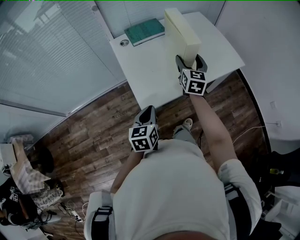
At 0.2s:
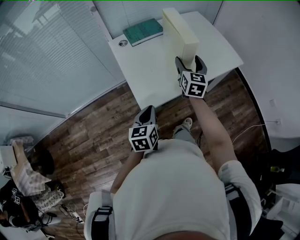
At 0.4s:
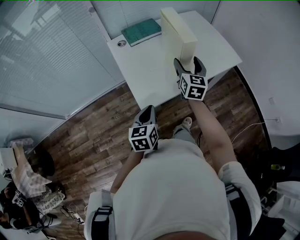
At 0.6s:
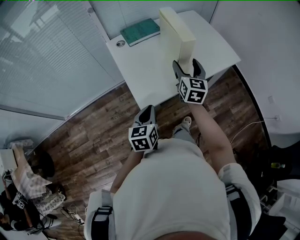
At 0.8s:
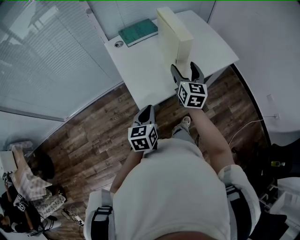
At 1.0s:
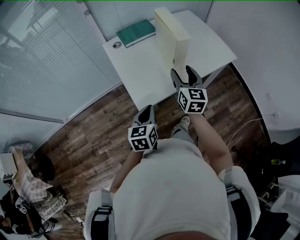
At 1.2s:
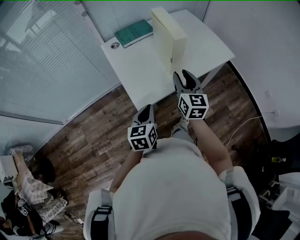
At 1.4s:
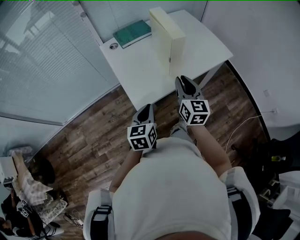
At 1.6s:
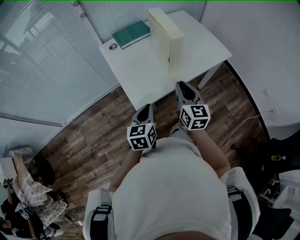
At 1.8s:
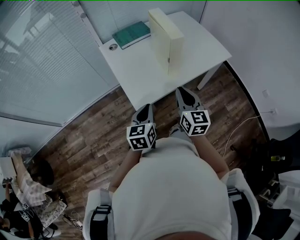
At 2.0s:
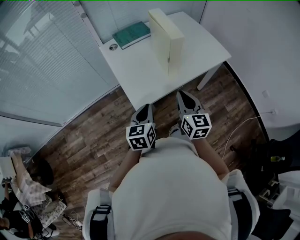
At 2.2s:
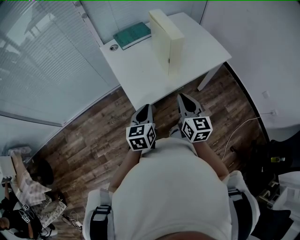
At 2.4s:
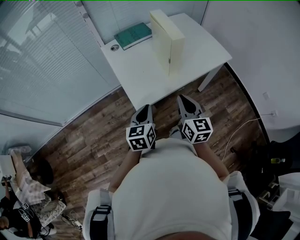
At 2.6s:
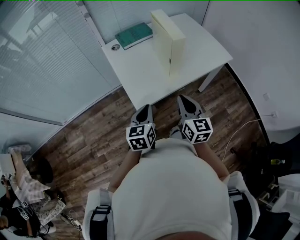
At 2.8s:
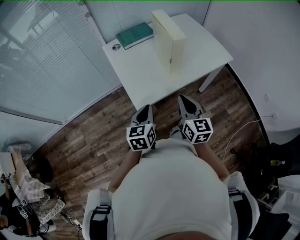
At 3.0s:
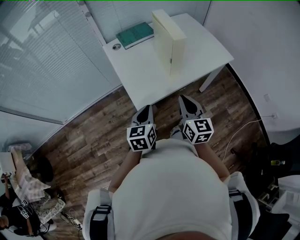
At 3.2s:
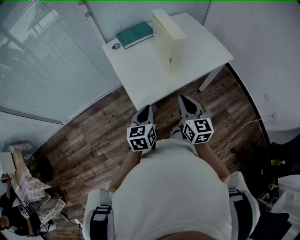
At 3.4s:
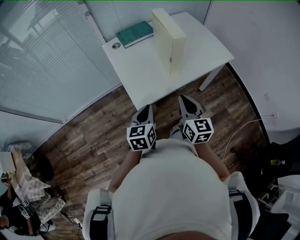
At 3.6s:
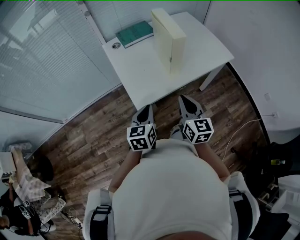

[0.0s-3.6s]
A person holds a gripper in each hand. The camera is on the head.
0.0s to 1.8s: The right gripper shifts approximately 20 cm backward, and closes.
1.8s to 3.6s: The grippers make only small movements.

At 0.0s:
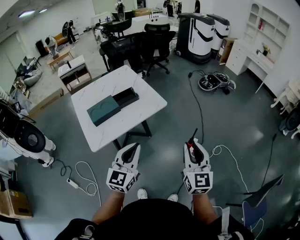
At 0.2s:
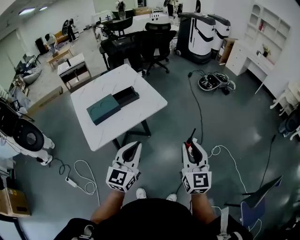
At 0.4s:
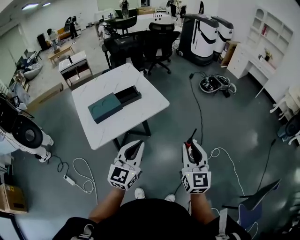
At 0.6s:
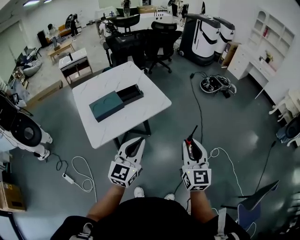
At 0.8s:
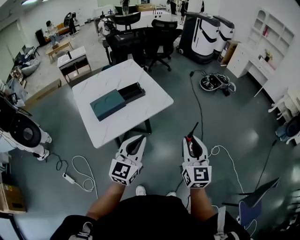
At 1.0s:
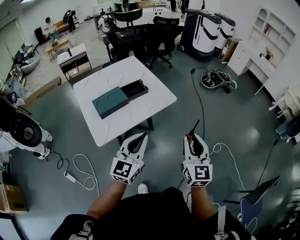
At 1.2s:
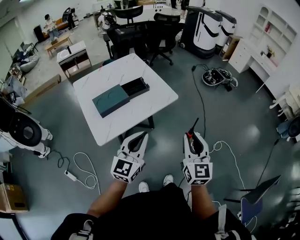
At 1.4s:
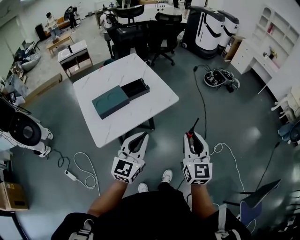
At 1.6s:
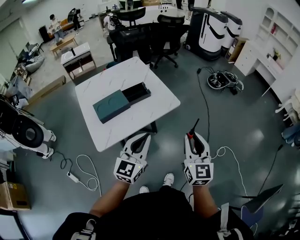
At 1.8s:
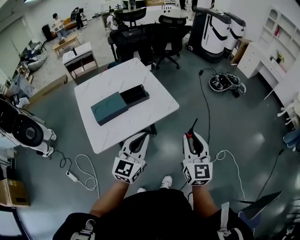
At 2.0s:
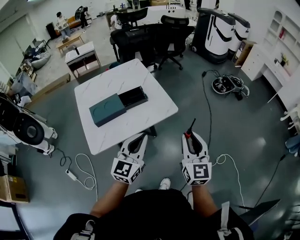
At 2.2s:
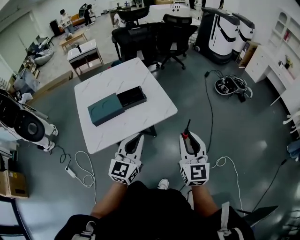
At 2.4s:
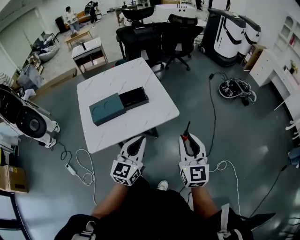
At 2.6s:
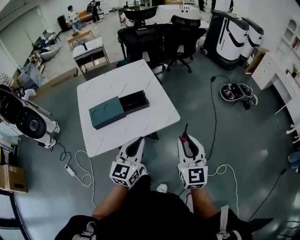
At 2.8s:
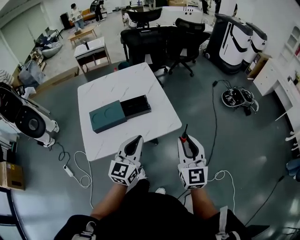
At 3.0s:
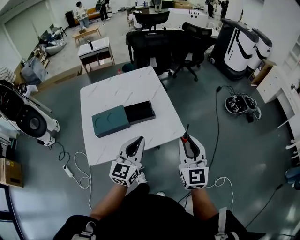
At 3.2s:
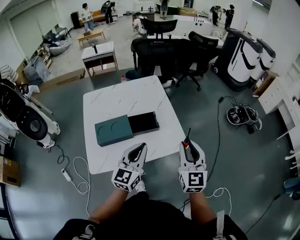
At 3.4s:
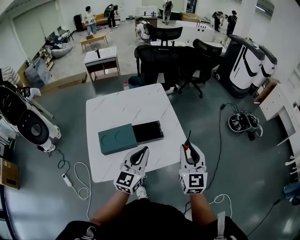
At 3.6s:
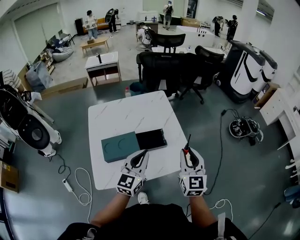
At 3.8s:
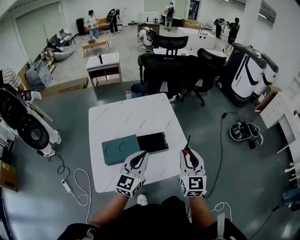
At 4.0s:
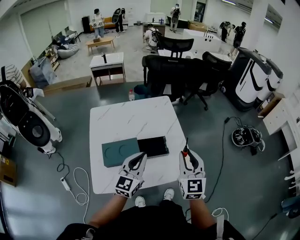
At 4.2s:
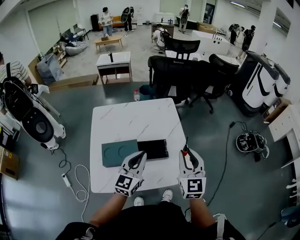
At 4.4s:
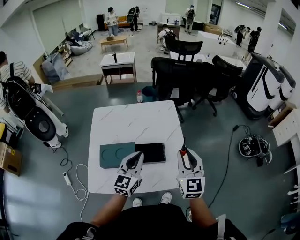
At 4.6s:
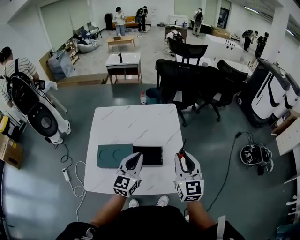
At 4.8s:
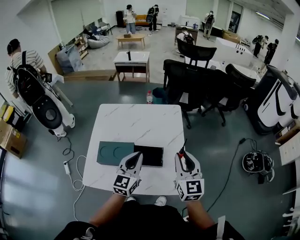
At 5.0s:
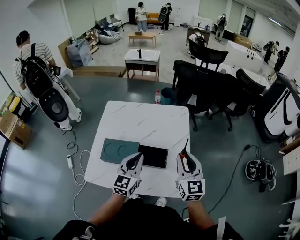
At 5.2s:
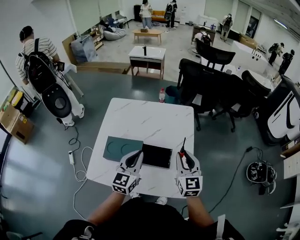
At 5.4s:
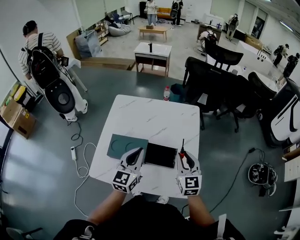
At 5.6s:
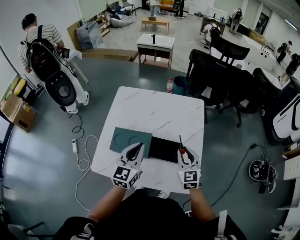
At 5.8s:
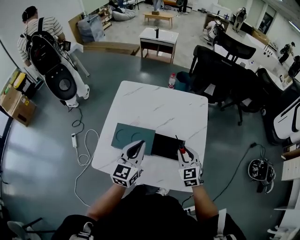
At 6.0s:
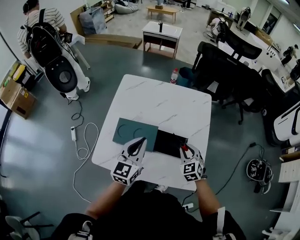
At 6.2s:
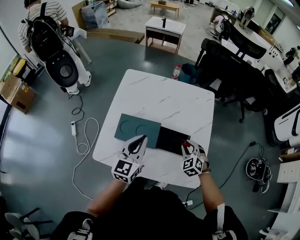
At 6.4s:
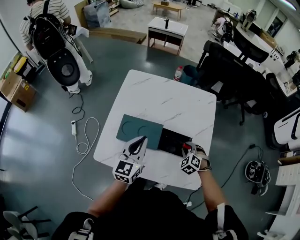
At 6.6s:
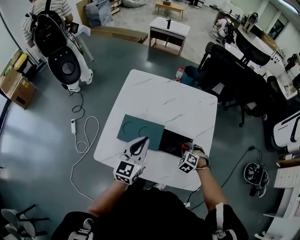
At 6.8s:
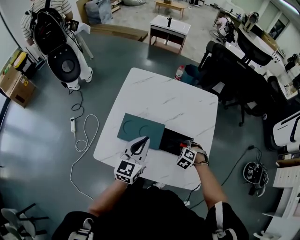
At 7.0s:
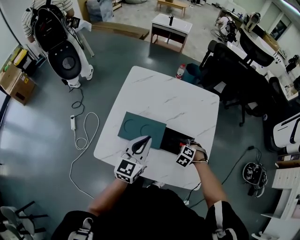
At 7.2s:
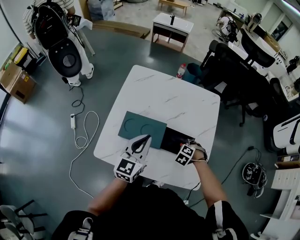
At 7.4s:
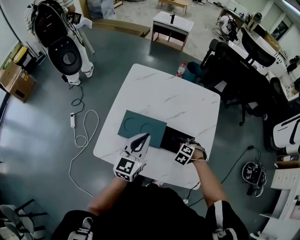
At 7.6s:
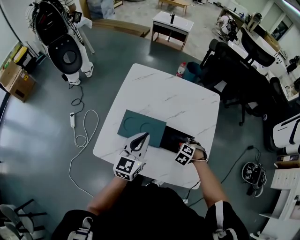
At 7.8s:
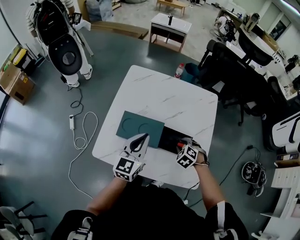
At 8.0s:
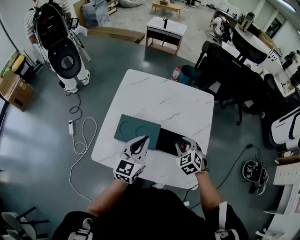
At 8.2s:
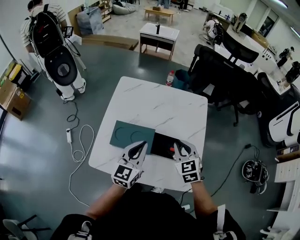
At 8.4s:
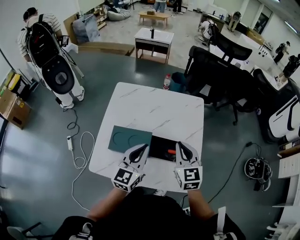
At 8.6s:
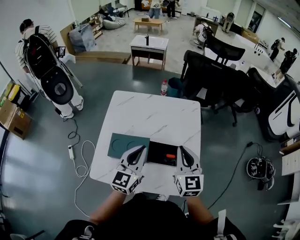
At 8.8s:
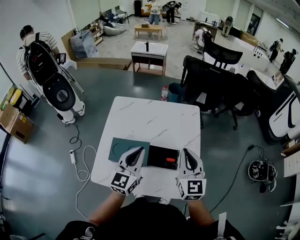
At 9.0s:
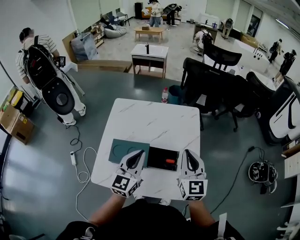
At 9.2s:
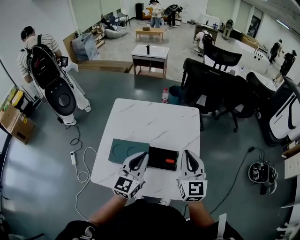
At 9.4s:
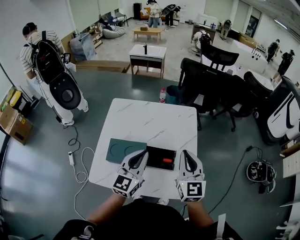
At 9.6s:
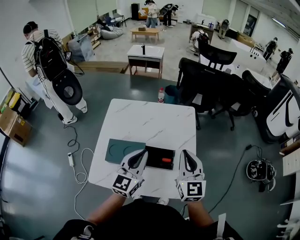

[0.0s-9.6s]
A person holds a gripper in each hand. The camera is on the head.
0.0s to 1.6s: The right gripper travels to the left and forward by approximately 15 cm. The left gripper moves forward and to the left, roughly 10 cm.
1.6s to 3.2s: The two grippers go some 25 cm forward.
3.2s to 4.8s: Both grippers travel together forward, approximately 20 cm. The left gripper swivels roughly 20 degrees. The right gripper turns by some 20 degrees.
4.8s to 6.4s: The left gripper heads to the left, covering approximately 15 cm. Meanwhile the right gripper is displaced downward by approximately 30 cm, and tilts its fingers approximately 50 degrees downward.
6.4s to 8.0s: The right gripper goes about 10 cm upward.
8.0s to 9.6s: The right gripper goes roughly 20 cm upward, points its fingers approximately 50 degrees further upward, and closes, while the left gripper goes approximately 10 cm upward and to the right.

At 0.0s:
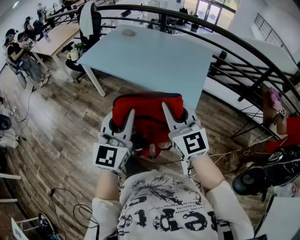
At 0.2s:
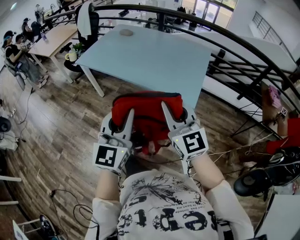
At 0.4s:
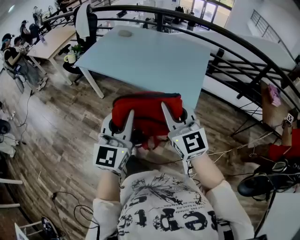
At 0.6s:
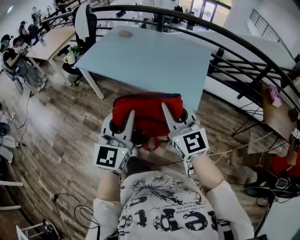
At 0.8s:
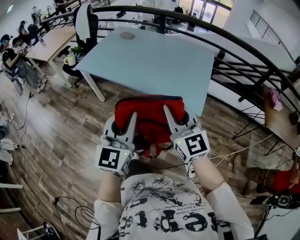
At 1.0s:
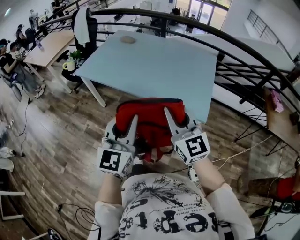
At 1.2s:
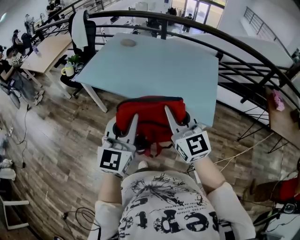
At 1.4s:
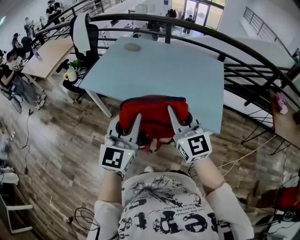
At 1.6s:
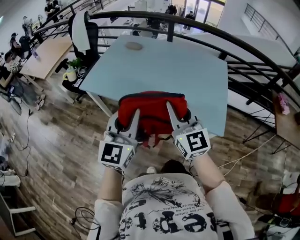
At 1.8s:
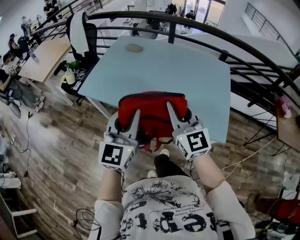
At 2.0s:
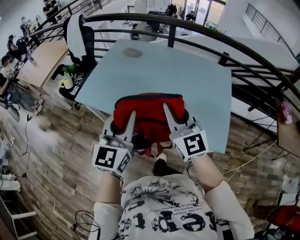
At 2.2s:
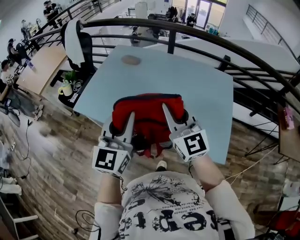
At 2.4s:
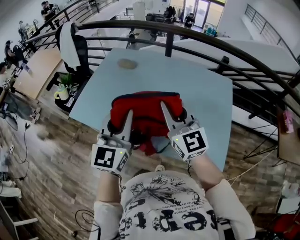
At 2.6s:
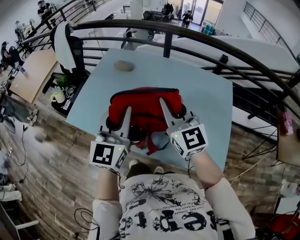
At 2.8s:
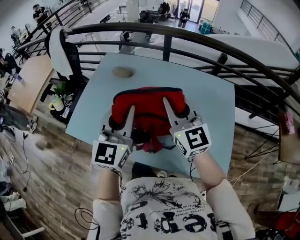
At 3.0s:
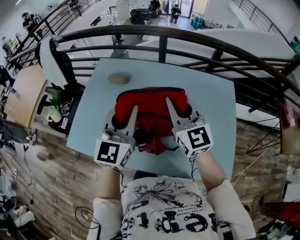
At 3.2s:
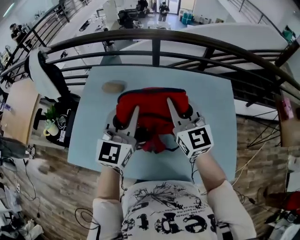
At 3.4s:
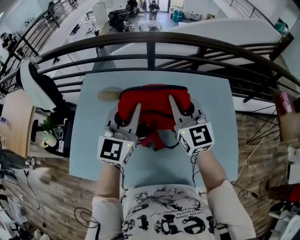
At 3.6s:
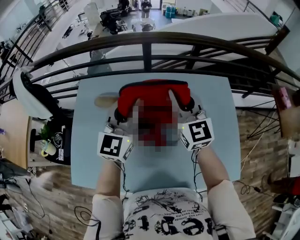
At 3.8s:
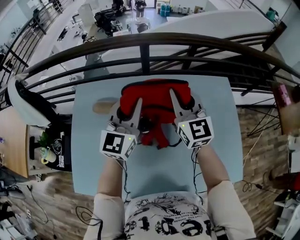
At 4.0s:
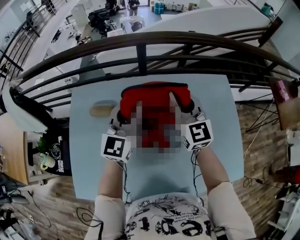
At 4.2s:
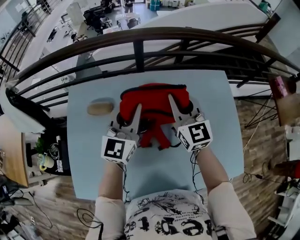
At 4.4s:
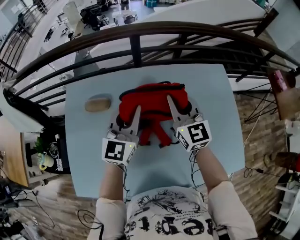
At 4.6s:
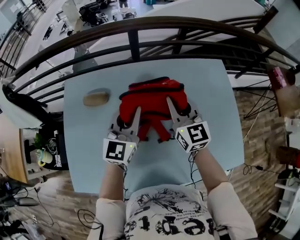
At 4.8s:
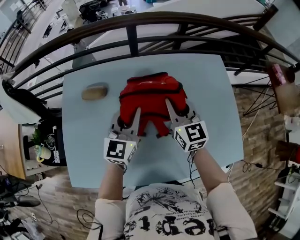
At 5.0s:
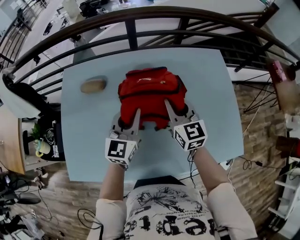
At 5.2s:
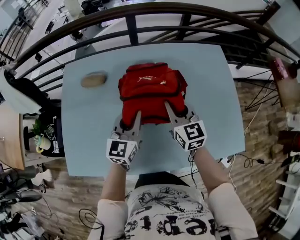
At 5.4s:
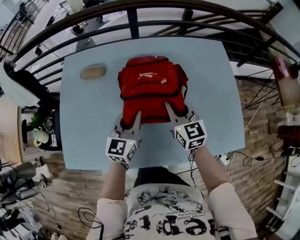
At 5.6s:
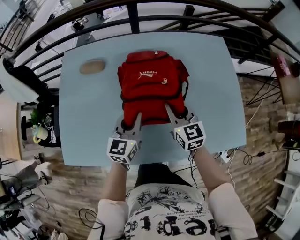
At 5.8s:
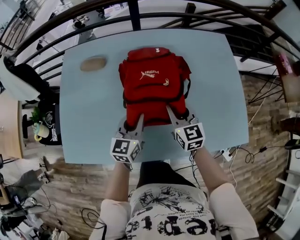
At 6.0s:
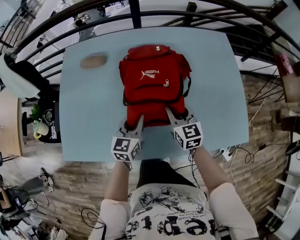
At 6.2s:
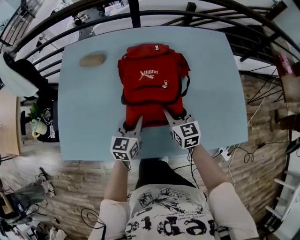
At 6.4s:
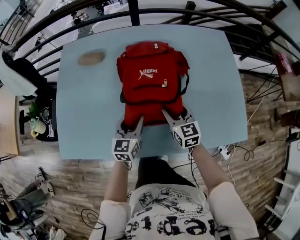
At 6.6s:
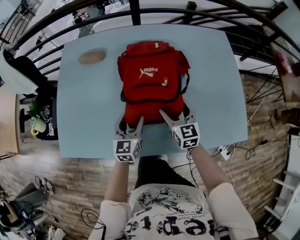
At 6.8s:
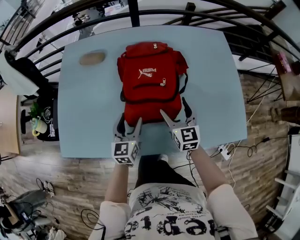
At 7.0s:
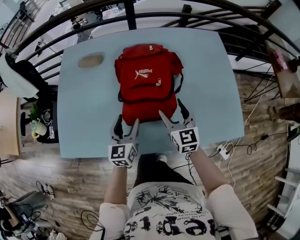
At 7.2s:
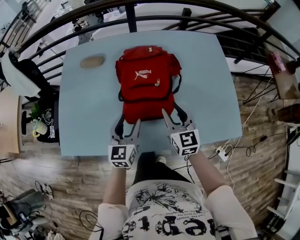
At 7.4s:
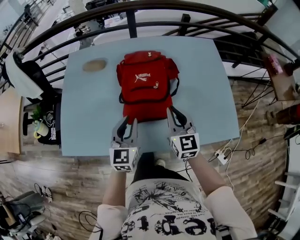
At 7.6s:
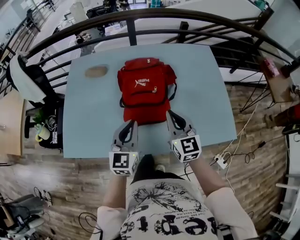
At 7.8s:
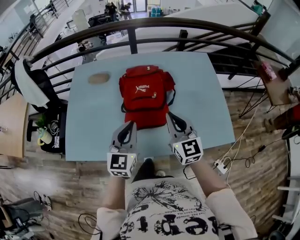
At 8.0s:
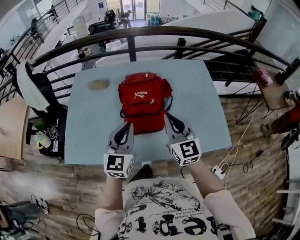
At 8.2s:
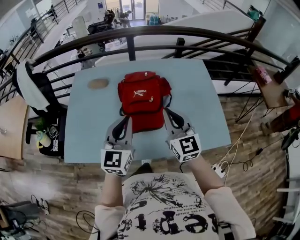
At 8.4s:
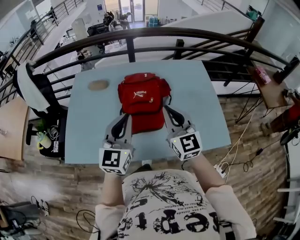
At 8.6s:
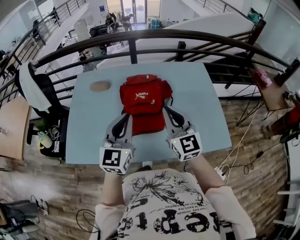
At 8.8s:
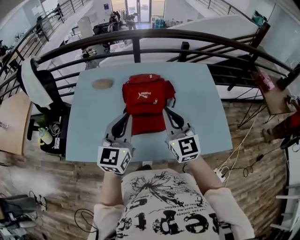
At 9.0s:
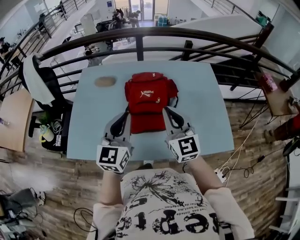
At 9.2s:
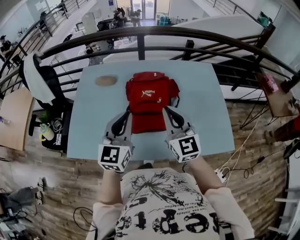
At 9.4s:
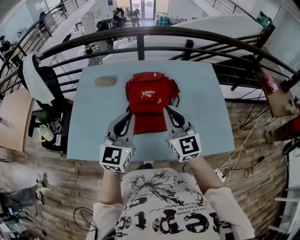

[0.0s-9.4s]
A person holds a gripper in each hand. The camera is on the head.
0.0s to 1.6s: Both grippers move forward and to the left, some 30 cm.
1.6s to 3.2s: Both grippers are carried forward, approximately 50 cm.
3.2s to 4.8s: The two grippers go approximately 15 cm downward and forward. The right gripper turns by roughly 20 degrees.
4.8s to 6.2s: Both grippers move downward and backward, approximately 25 cm. The left gripper turns by some 20 degrees.
6.2s to 7.8s: The grippers both shift upward and backward by some 20 cm. The right gripper rotates about 20 degrees, and closes up. Meanwhile the left gripper turns by about 20 degrees, and opens and closes again.
7.8s to 9.4s: Both grippers move upward, some 5 cm.

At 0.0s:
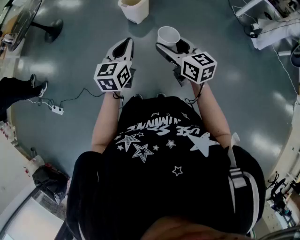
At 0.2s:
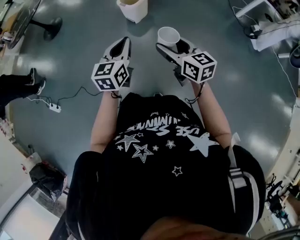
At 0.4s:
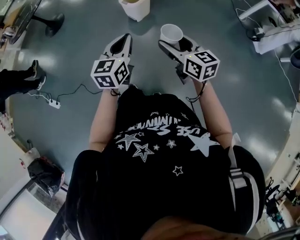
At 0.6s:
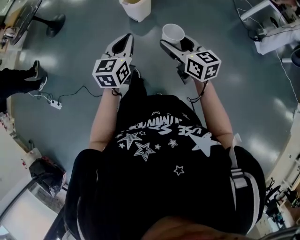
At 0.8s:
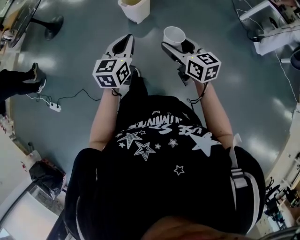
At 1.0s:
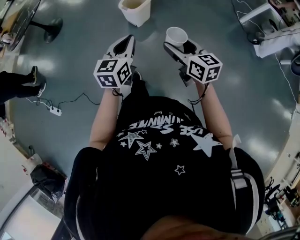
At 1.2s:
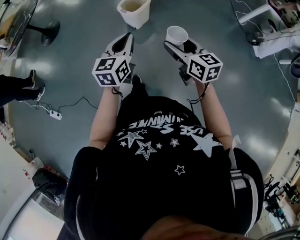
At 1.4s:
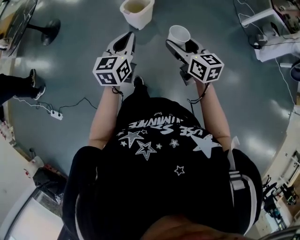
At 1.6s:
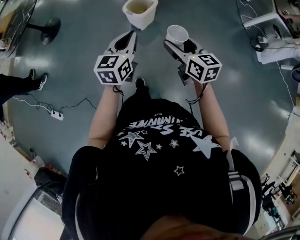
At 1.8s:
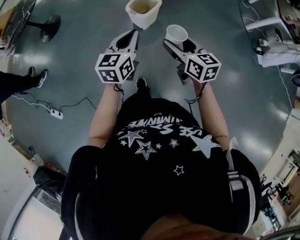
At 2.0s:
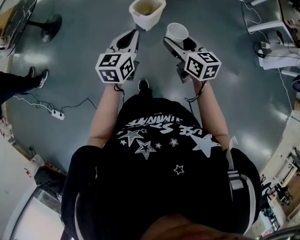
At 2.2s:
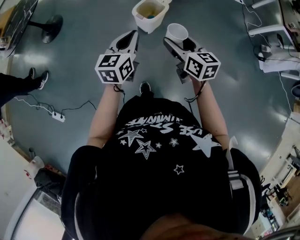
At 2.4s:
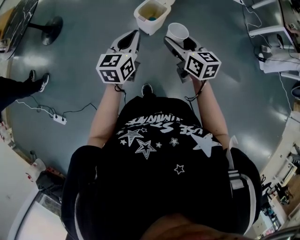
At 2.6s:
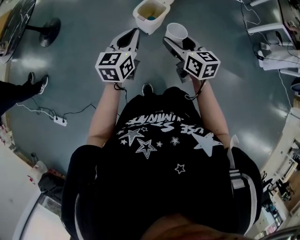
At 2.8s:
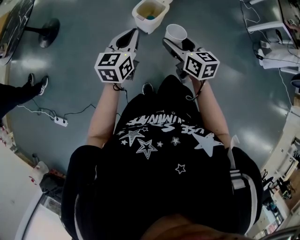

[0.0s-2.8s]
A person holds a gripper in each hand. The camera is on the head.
0.0s to 1.4s: The grippers both shift forward by about 20 cm.
1.4s to 2.8s: The two grippers go approximately 20 cm forward and to the left.
